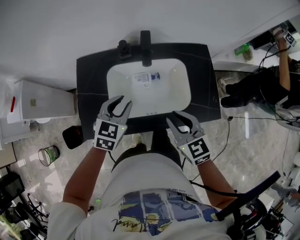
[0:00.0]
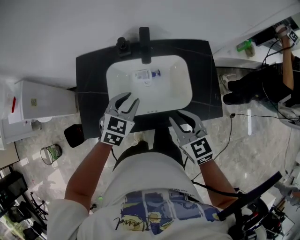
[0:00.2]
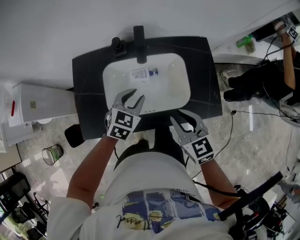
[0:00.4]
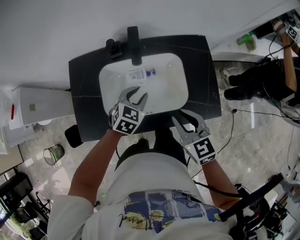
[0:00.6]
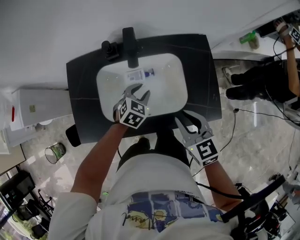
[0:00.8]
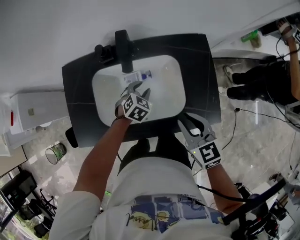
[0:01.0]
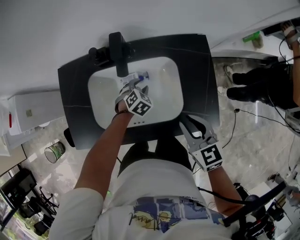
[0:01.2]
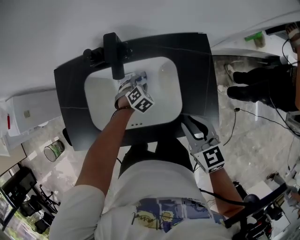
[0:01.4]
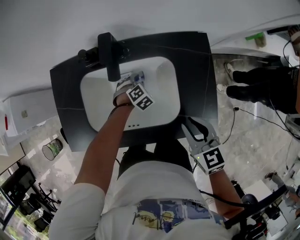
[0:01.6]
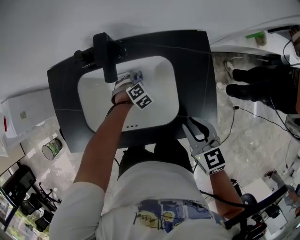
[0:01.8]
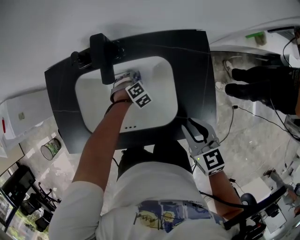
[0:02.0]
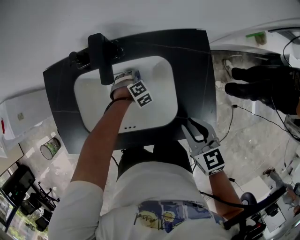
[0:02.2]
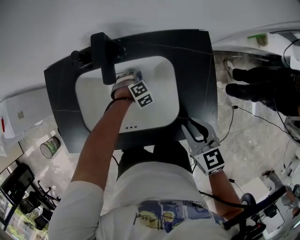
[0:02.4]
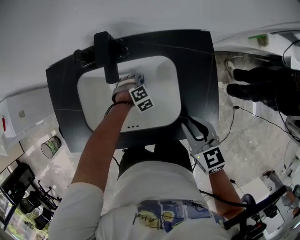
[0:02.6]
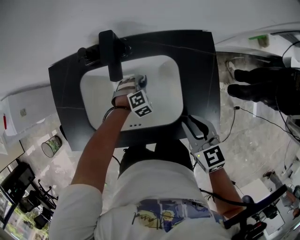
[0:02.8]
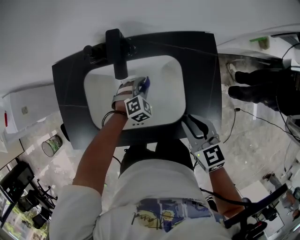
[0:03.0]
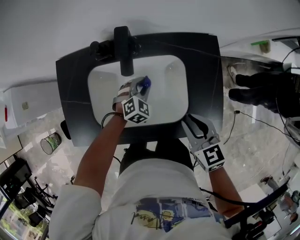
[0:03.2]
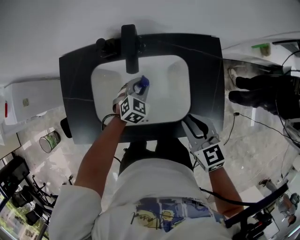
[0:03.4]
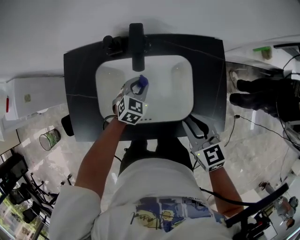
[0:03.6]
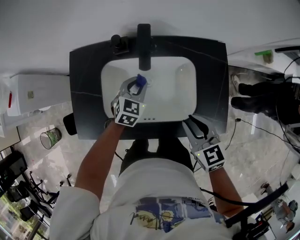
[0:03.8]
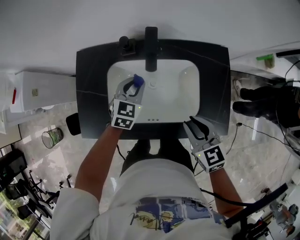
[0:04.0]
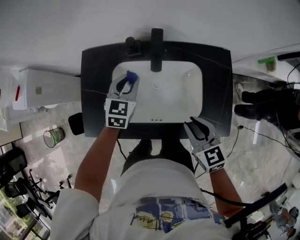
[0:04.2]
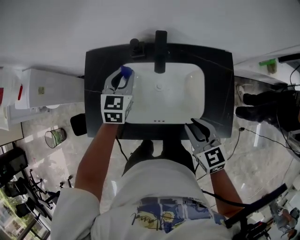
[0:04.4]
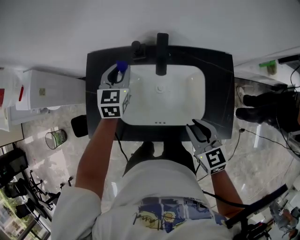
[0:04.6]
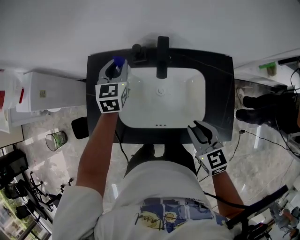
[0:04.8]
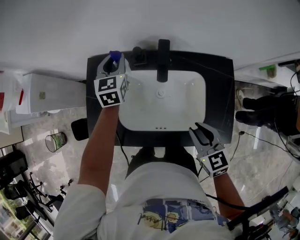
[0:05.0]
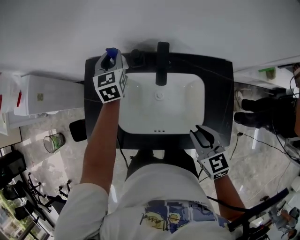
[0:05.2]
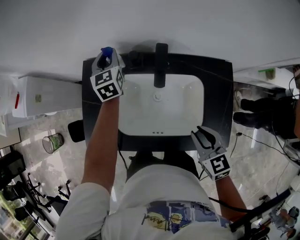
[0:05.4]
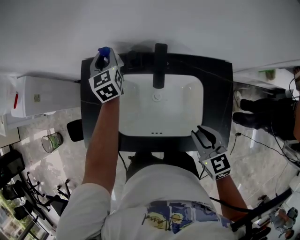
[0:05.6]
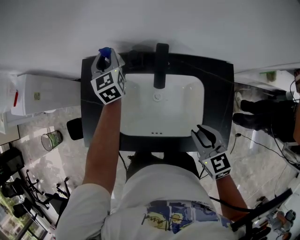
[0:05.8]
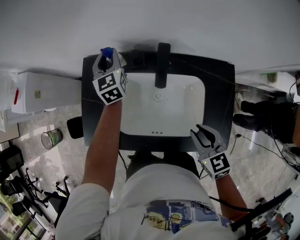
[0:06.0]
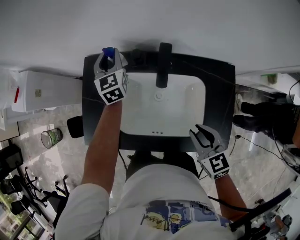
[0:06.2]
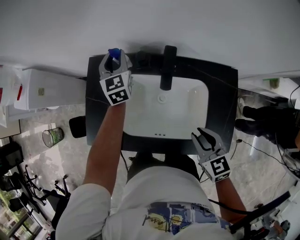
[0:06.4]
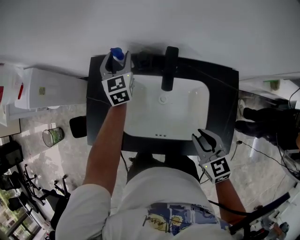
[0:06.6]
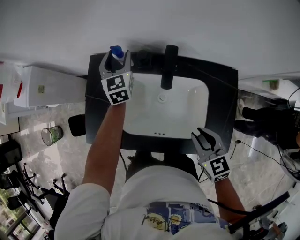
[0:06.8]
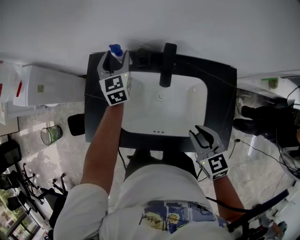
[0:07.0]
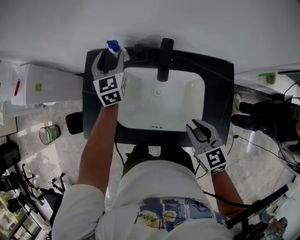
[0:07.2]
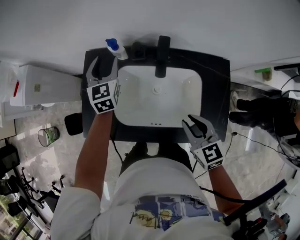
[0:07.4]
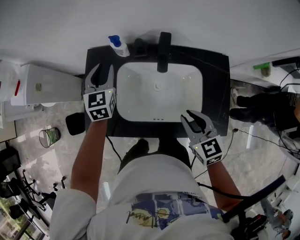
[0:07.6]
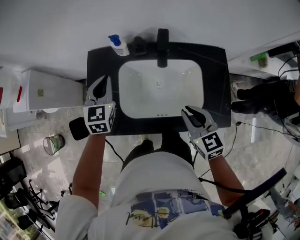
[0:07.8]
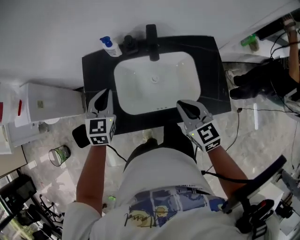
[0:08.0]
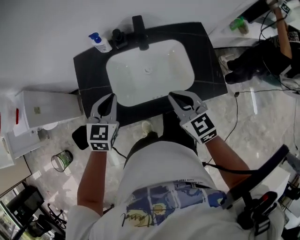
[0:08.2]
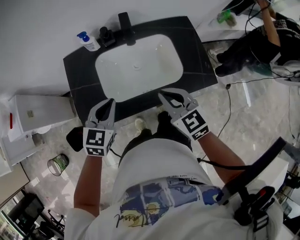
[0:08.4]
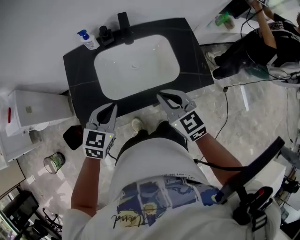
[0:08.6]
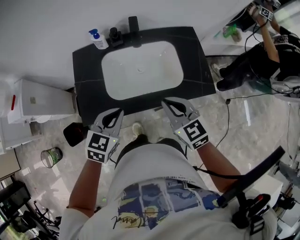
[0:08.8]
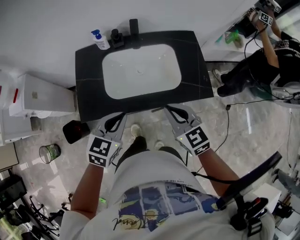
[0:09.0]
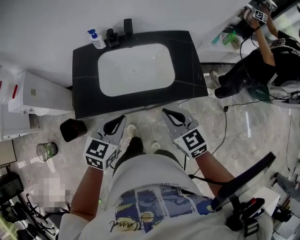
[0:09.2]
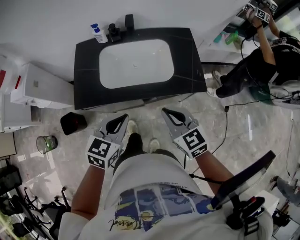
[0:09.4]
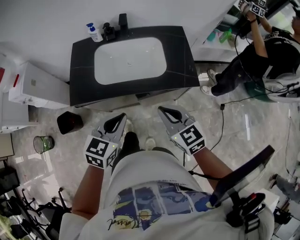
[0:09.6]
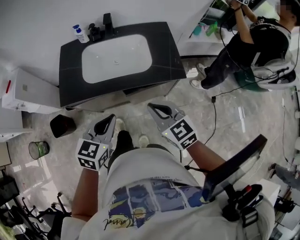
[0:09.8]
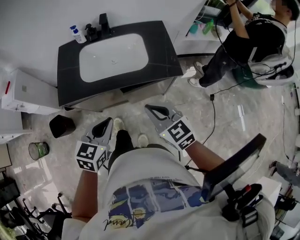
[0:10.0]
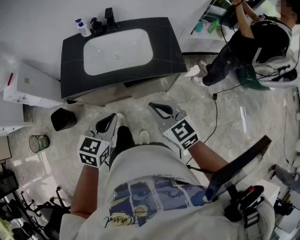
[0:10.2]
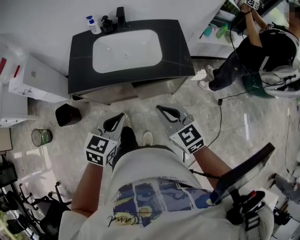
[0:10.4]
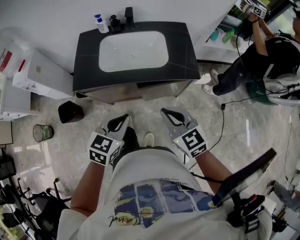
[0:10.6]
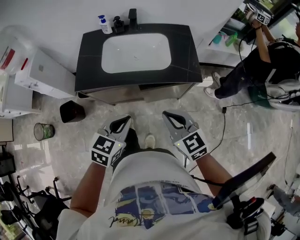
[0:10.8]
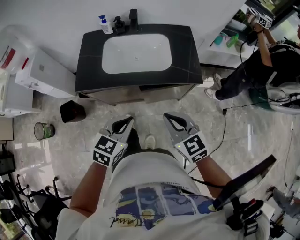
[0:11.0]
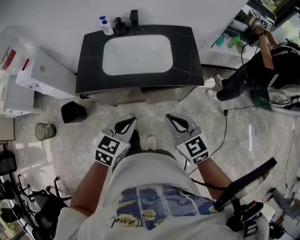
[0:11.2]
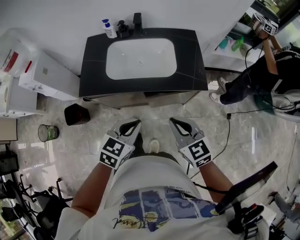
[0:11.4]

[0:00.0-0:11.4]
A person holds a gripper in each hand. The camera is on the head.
0:00.0 to 0:01.4: The right gripper moves to the right, some 15 cm. The left gripper moves downward, to the right and forward, about 35 cm, and turns by about 40 degrees.
0:02.8 to 0:04.2: The right gripper travels to the left by roughly 10 cm. The left gripper is displaced upward and to the left by some 30 cm, and rotates around the line of its fingers by about 50 degrees, counterclockwise from behind.
0:04.2 to 0:05.6: The left gripper is displaced forward by approximately 20 cm, and swivels some 30 degrees.
0:05.6 to 0:07.2: The left gripper opens its fingers.
0:07.2 to 0:08.6: The right gripper shifts by roughly 15 cm, and closes, while the left gripper ends up some 35 cm from where it was, turns by approximately 50 degrees, and closes up.
0:08.6 to 0:10.0: The two grippers go roughly 25 cm backward and to the right.
0:10.0 to 0:11.4: There are only small adjustments of the grippers.

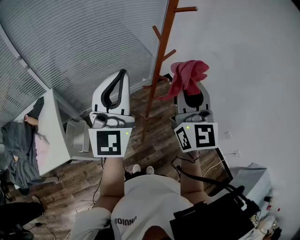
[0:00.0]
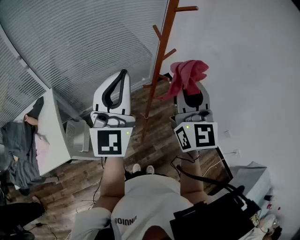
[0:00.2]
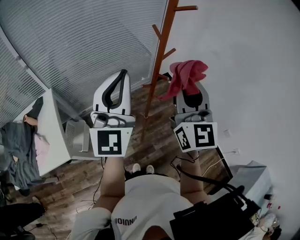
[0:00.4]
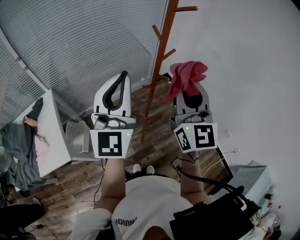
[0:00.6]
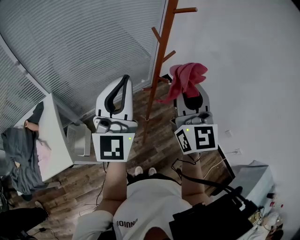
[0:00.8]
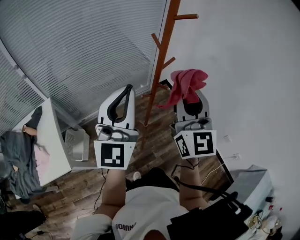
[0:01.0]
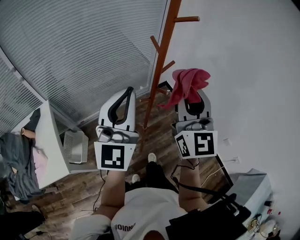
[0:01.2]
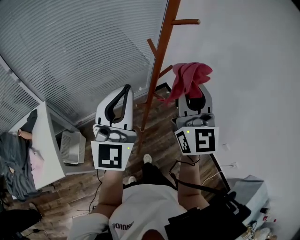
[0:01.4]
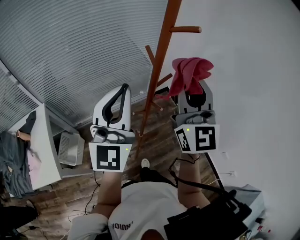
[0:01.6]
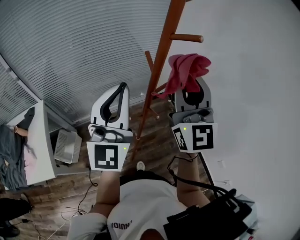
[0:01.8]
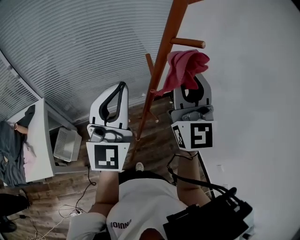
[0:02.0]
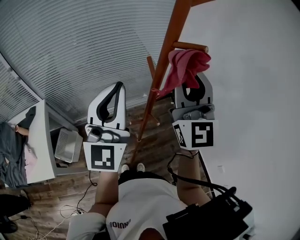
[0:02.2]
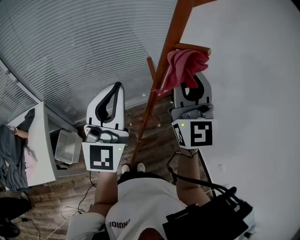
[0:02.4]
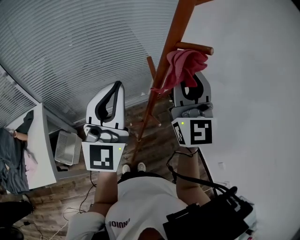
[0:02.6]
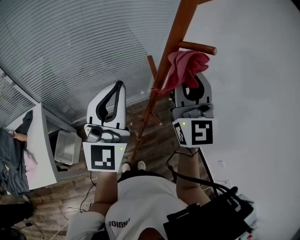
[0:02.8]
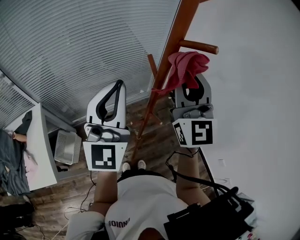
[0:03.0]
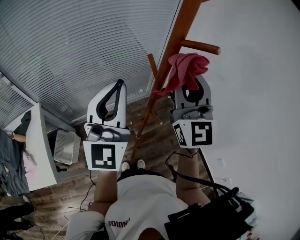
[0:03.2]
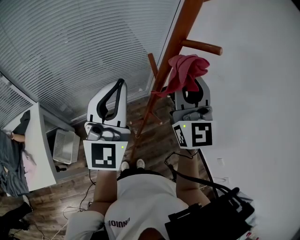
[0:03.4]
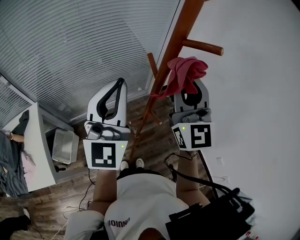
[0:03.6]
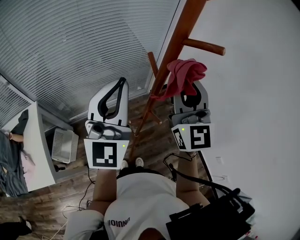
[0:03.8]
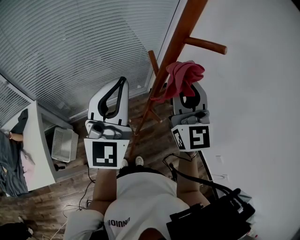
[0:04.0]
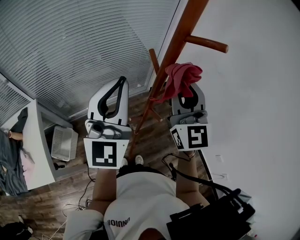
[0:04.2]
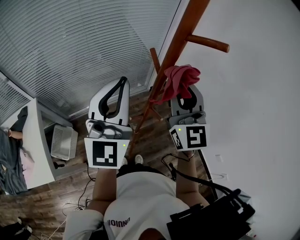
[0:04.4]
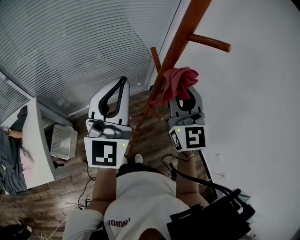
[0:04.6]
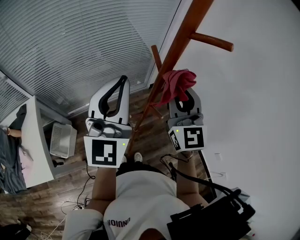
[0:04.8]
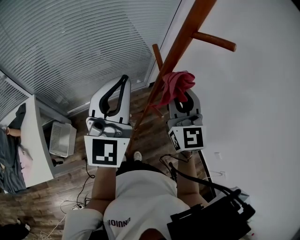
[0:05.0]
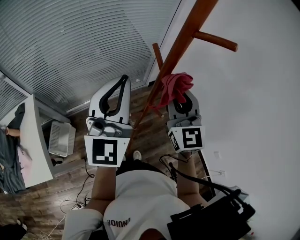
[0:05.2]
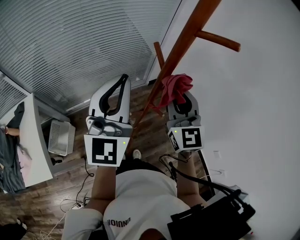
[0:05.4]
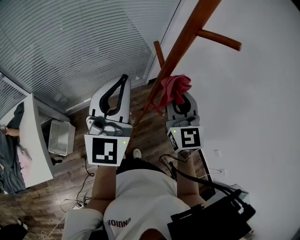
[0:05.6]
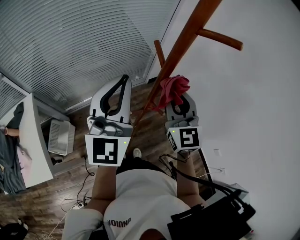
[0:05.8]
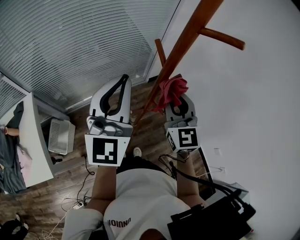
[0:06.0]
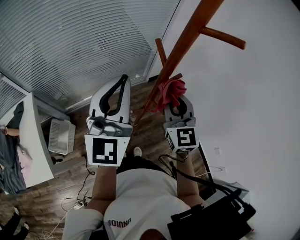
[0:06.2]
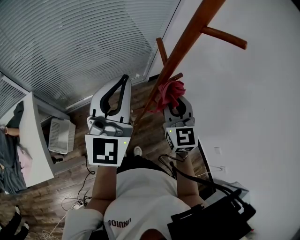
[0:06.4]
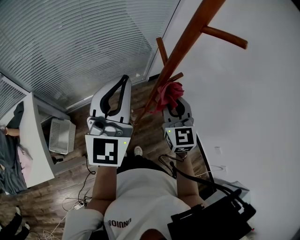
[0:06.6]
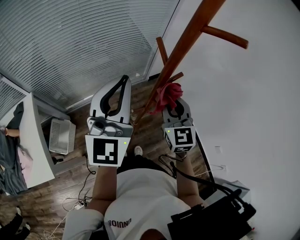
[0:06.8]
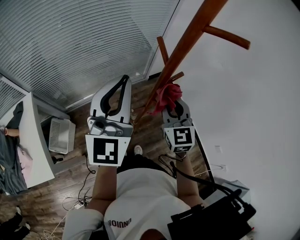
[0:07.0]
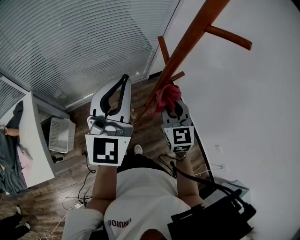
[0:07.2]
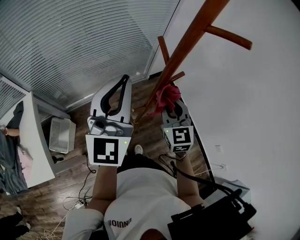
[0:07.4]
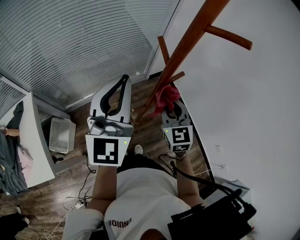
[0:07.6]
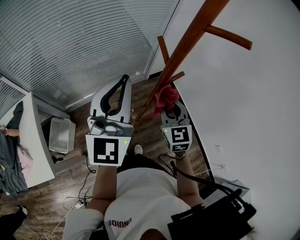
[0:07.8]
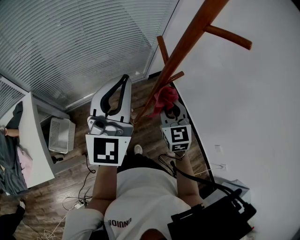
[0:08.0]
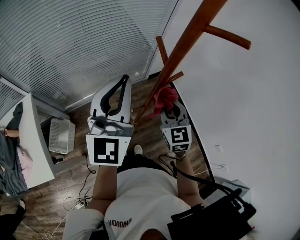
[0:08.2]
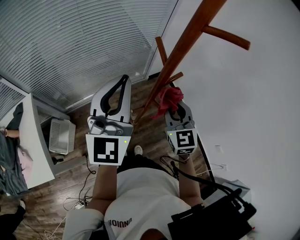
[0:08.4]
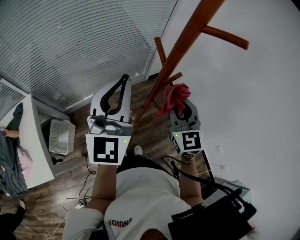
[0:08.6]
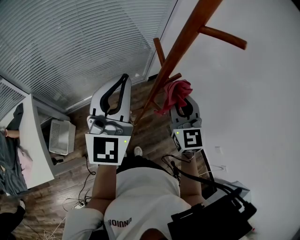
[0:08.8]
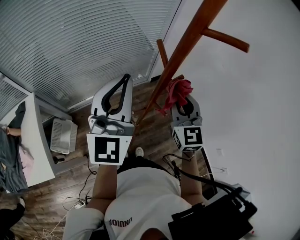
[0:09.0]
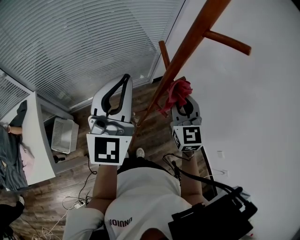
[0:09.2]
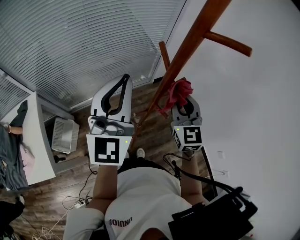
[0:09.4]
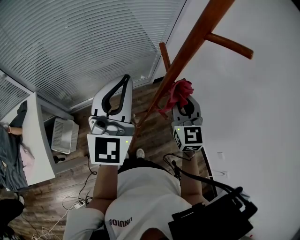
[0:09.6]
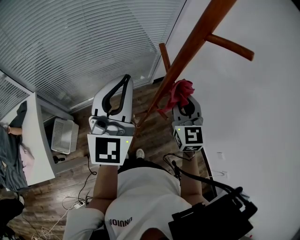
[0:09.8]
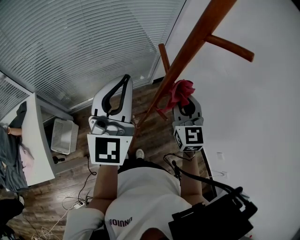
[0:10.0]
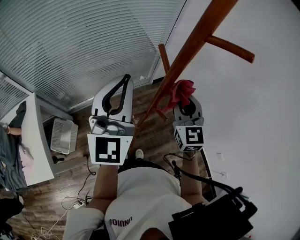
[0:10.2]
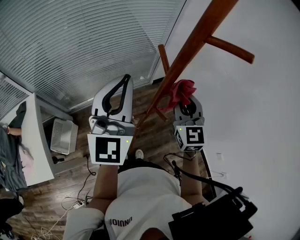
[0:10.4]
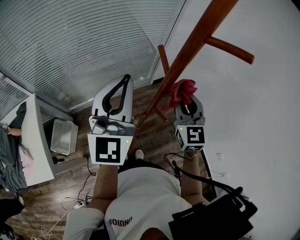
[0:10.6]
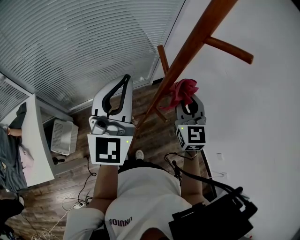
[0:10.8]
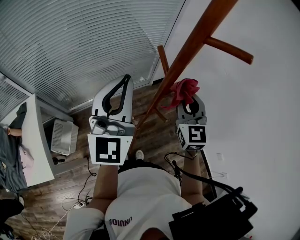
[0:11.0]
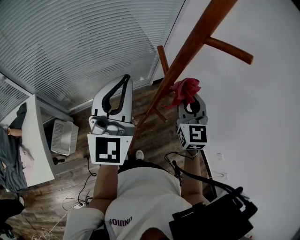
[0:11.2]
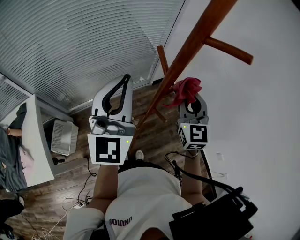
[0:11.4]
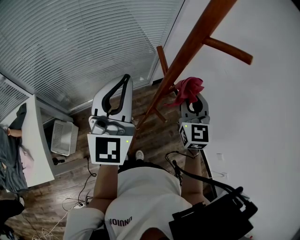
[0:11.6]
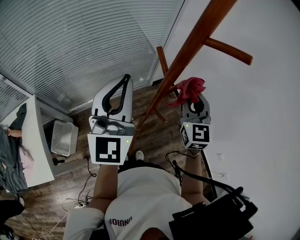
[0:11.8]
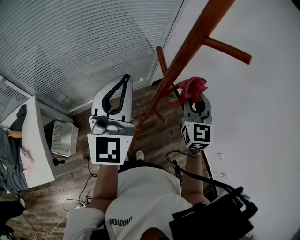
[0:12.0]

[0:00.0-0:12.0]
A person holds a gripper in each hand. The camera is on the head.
0:00.0 to 0:01.6: The two grippers go approximately 10 cm forward.
0:01.6 to 0:03.0: The two grippers go roughly 5 cm forward.
0:03.0 to 0:04.4: The right gripper shifts roughly 10 cm downward.
0:04.4 to 0:06.0: The right gripper travels downward by some 10 cm.
0:06.0 to 0:07.6: The right gripper moves downward, approximately 10 cm.
0:07.6 to 0:09.0: The right gripper travels upward by roughly 5 cm.
0:09.0 to 0:10.4: The grippers make only small movements.
0:10.4 to 0:12.0: The right gripper shifts by roughly 5 cm.

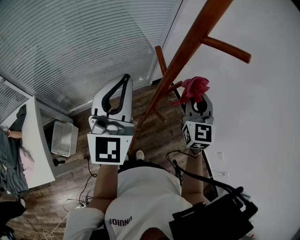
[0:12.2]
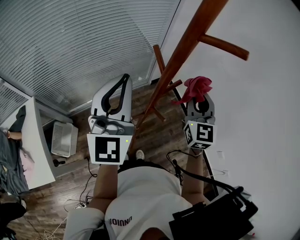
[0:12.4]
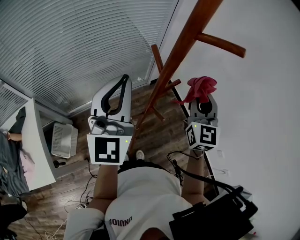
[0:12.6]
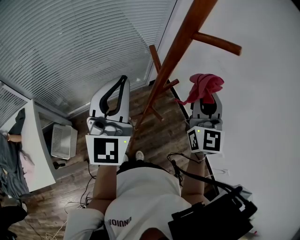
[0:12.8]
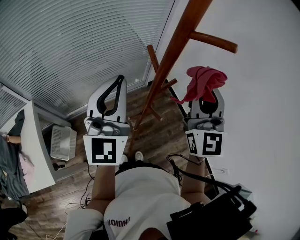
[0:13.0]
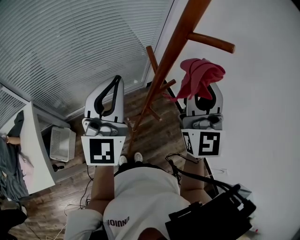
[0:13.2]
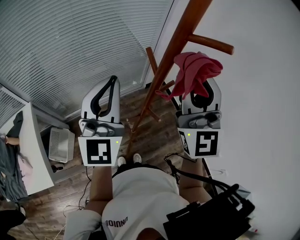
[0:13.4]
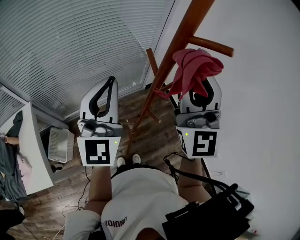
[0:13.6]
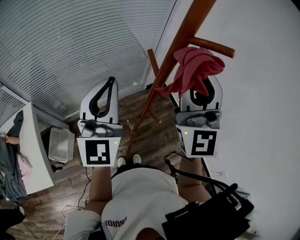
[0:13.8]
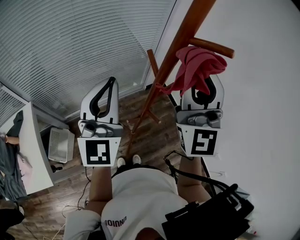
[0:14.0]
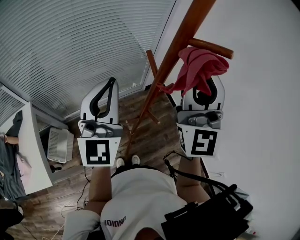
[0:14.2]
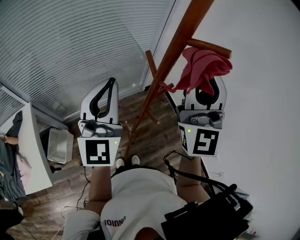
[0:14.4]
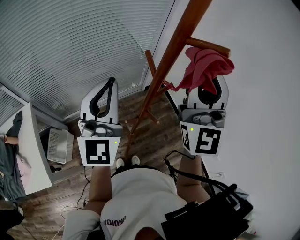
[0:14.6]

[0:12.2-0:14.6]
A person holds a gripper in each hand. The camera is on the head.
0:12.2 to 0:13.4: The right gripper is displaced upward by about 15 cm, and swivels roughly 30 degrees.
0:13.4 to 0:14.6: The grippers stay close to where they were, moving slightly.
